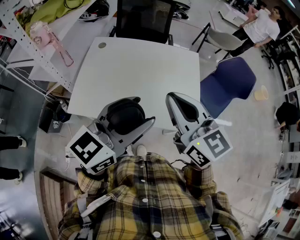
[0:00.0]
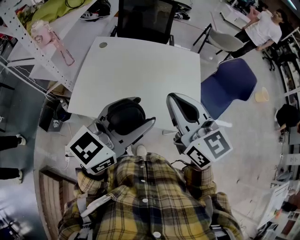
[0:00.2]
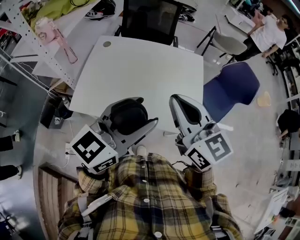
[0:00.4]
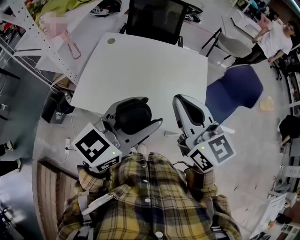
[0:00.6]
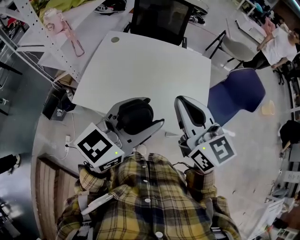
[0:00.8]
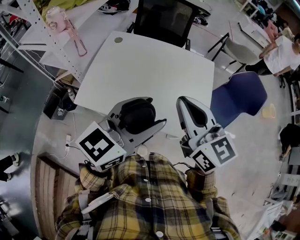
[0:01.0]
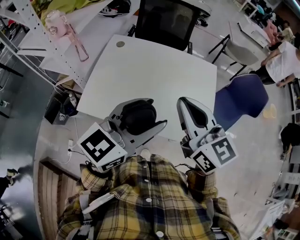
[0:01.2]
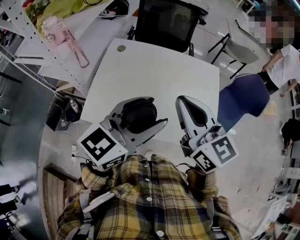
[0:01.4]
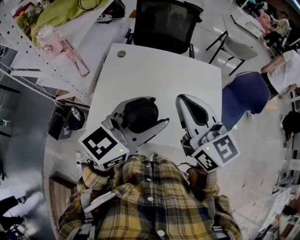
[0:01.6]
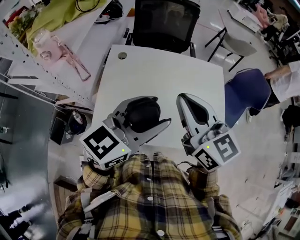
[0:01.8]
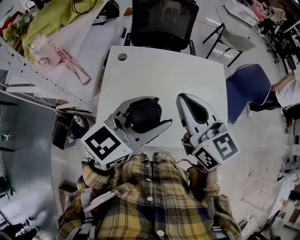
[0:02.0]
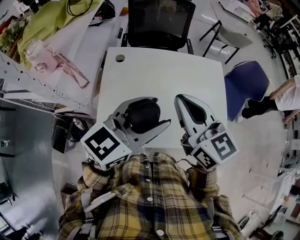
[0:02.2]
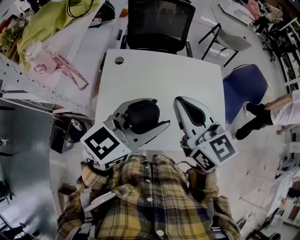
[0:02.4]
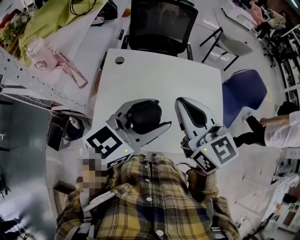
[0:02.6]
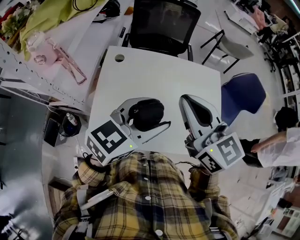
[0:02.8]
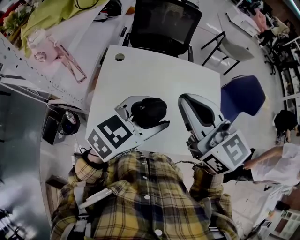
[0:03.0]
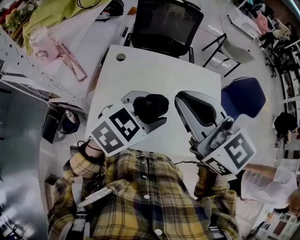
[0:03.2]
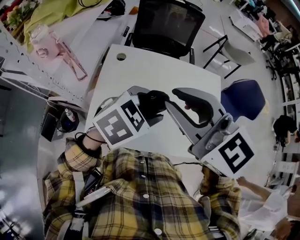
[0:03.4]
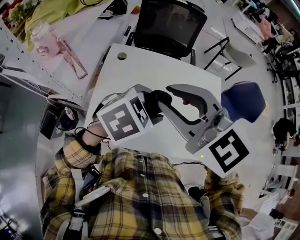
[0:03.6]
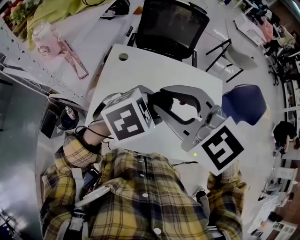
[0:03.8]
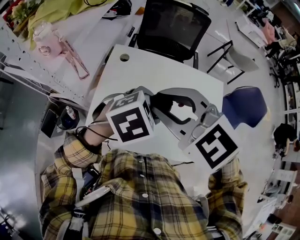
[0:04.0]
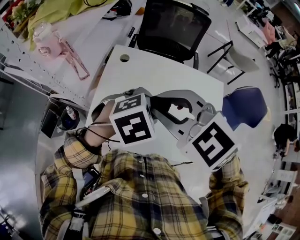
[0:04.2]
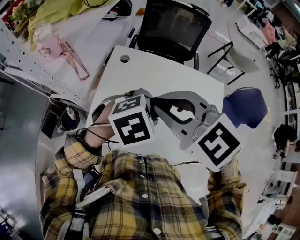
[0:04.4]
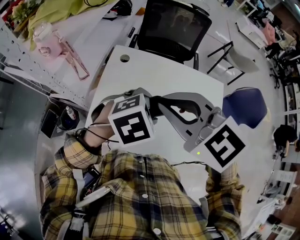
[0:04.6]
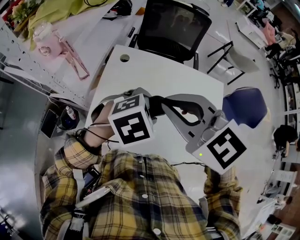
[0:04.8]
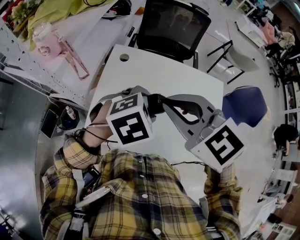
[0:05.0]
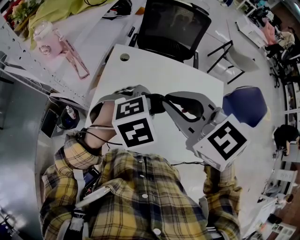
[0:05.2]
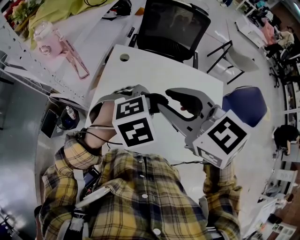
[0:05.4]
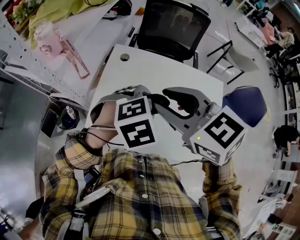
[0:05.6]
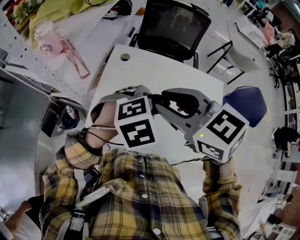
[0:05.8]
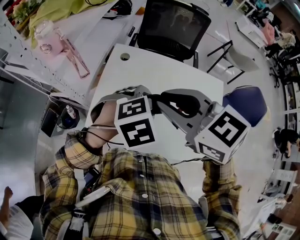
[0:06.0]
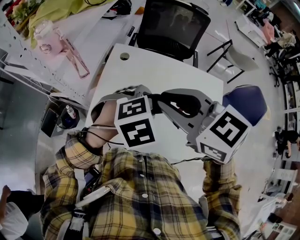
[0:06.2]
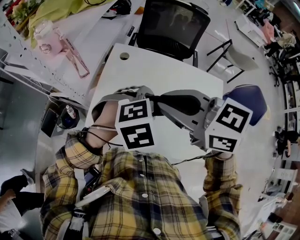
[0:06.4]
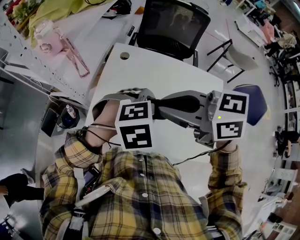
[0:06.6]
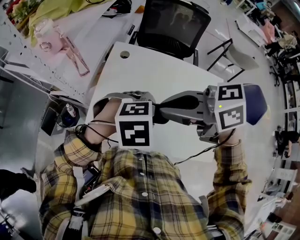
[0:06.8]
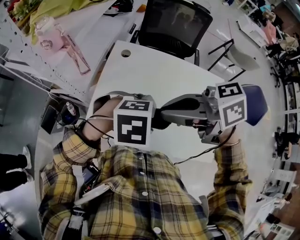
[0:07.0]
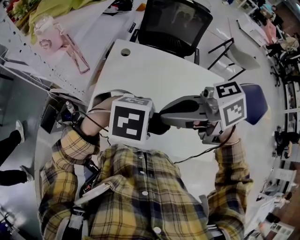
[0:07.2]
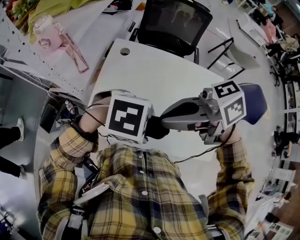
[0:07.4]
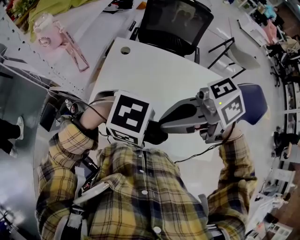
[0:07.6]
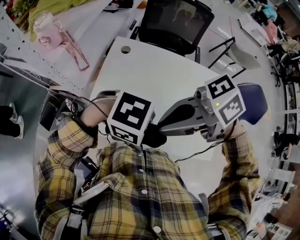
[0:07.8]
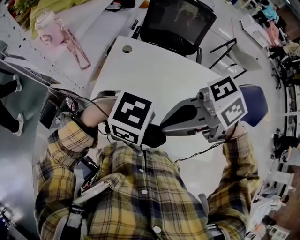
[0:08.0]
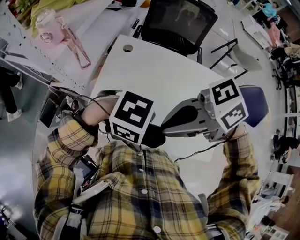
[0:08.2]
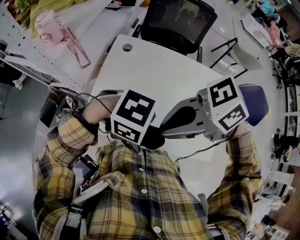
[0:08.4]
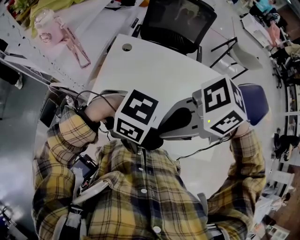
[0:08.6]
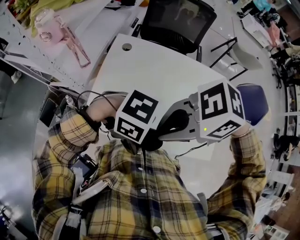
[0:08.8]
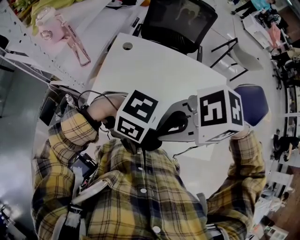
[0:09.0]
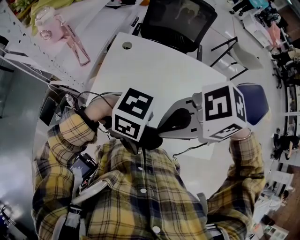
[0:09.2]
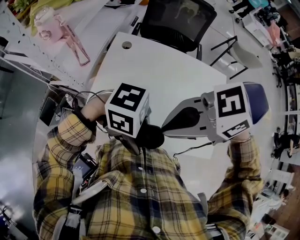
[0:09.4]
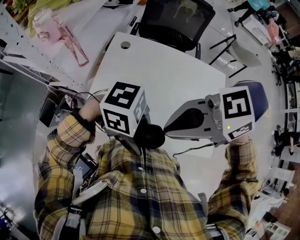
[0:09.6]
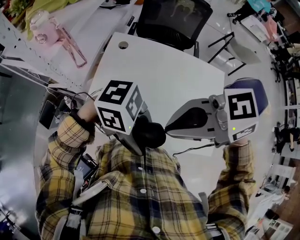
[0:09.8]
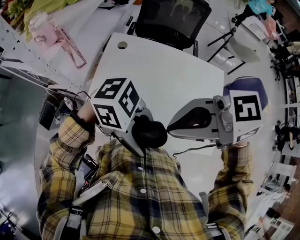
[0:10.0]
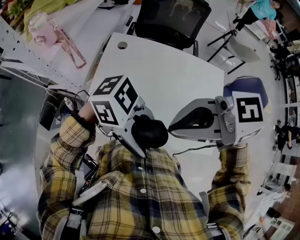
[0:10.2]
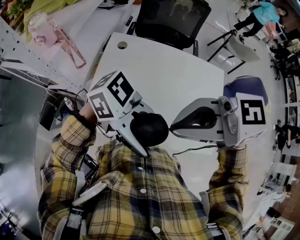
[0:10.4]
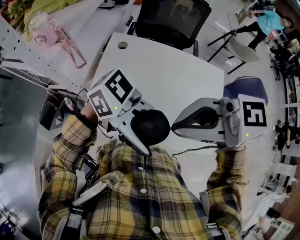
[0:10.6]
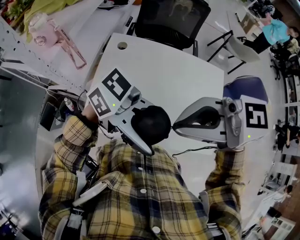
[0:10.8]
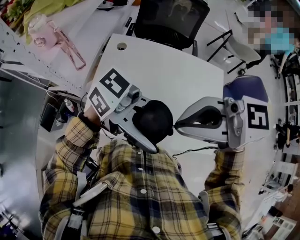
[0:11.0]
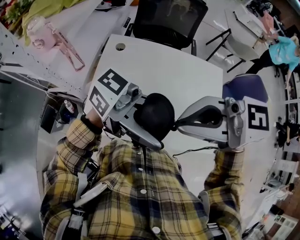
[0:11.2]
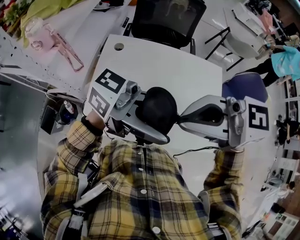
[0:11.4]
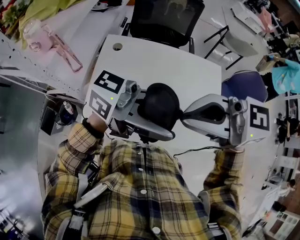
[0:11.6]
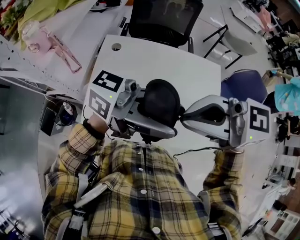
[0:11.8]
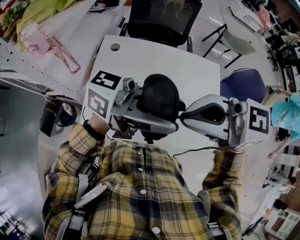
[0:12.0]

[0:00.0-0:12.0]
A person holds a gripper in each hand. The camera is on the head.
0:00.0 to 0:01.6: The grippers both shift to the left and forward by approximately 15 cm.
0:01.6 to 0:03.0: The left gripper travels forward by approximately 5 cm, and changes its angle by approximately 20 degrees, while the right gripper moves to the left, roughly 5 cm.
0:03.0 to 0:04.4: The left gripper goes roughly 5 cm downward, and tips its fingers downward by some 40 degrees; the right gripper heads to the left, covering approximately 5 cm, and changes its angle by some 40 degrees.
0:04.4 to 0:06.0: The grippers stay close to where they were, moving slightly.
0:06.0 to 0:07.6: The left gripper changes place by roughly 15 cm, and rotates about 50 degrees; the right gripper ends up about 10 cm from where it was, and swivels roughly 60 degrees.
0:07.6 to 0:09.0: The right gripper shifts by some 5 cm, and rotates about 40 degrees.
0:09.0 to 0:10.4: The two grippers go approximately 10 cm upward. The right gripper rotates approximately 40 degrees, while the left gripper points its fingers roughly 40 degrees further upward.
0:10.4 to 0:12.0: The left gripper shifts by approximately 10 cm, and rotates some 40 degrees.

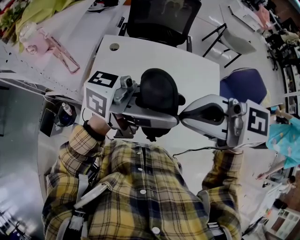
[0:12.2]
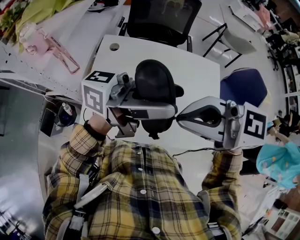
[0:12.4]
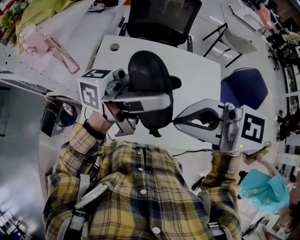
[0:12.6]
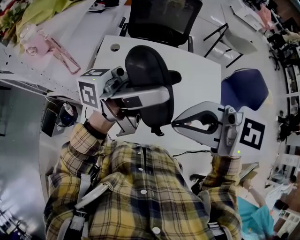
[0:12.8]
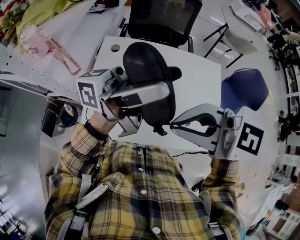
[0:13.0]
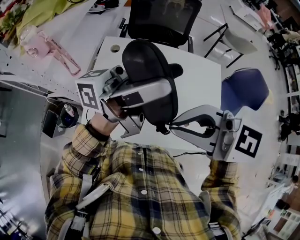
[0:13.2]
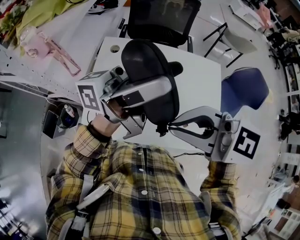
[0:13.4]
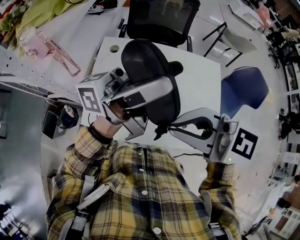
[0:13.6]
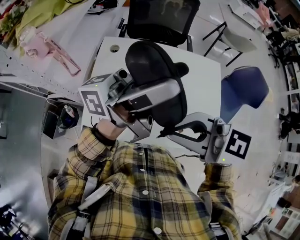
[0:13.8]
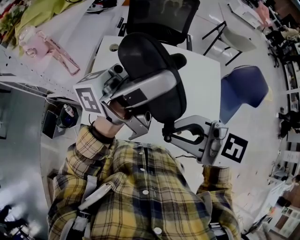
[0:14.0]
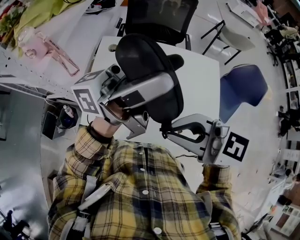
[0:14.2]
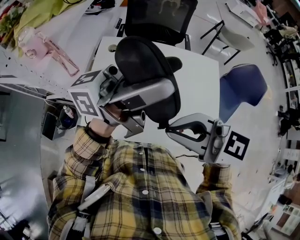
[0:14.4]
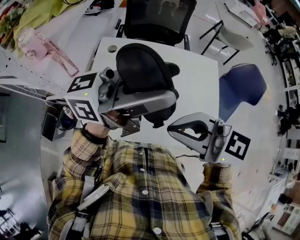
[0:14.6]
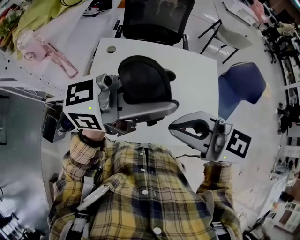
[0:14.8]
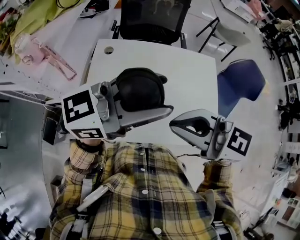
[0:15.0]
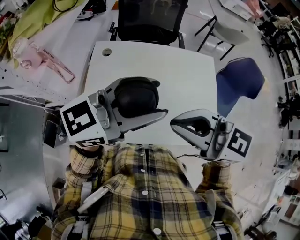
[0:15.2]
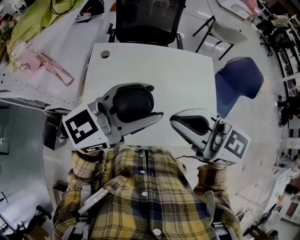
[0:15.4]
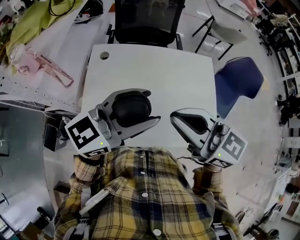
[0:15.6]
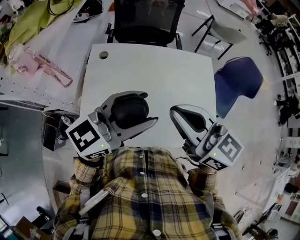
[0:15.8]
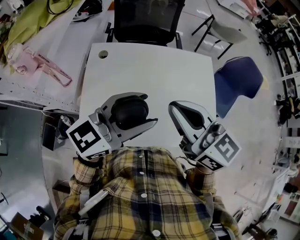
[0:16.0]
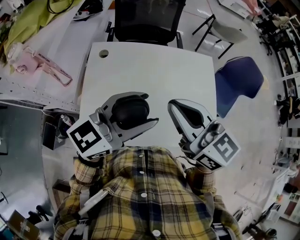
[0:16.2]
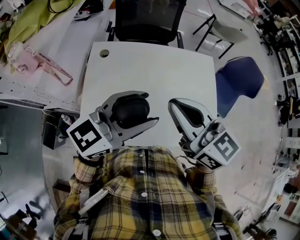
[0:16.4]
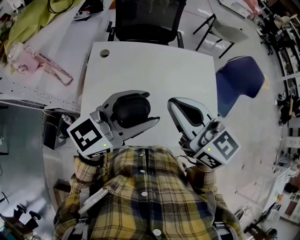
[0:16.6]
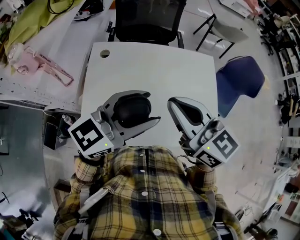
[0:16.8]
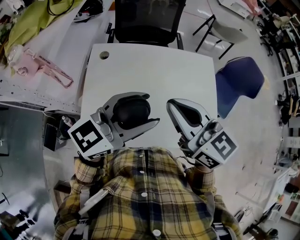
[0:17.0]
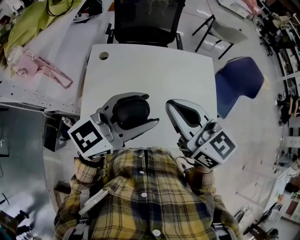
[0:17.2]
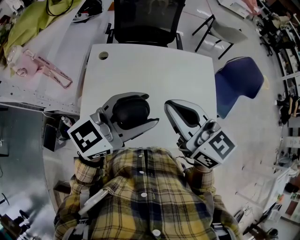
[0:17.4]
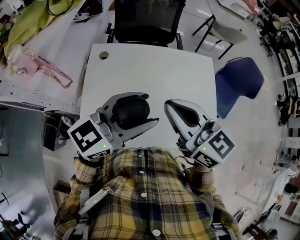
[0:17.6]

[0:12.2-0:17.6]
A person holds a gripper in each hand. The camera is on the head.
0:12.2 to 0:13.6: The left gripper changes place by about 10 cm, and changes its angle by about 30 degrees.
0:13.6 to 0:15.0: The left gripper ends up some 5 cm from where it was, and tilts its fingers roughly 30 degrees downward.
0:15.0 to 0:16.2: The left gripper moves downward, about 5 cm, while the right gripper changes place by about 10 cm, and turns by roughly 30 degrees.
0:16.2 to 0:17.6: There are only small adjustments of the grippers.

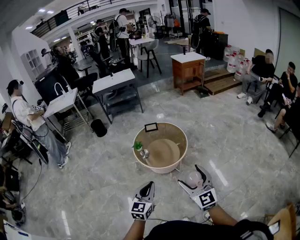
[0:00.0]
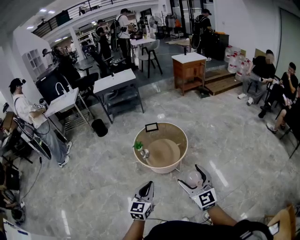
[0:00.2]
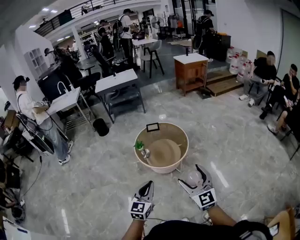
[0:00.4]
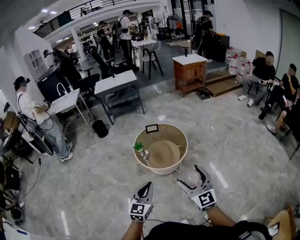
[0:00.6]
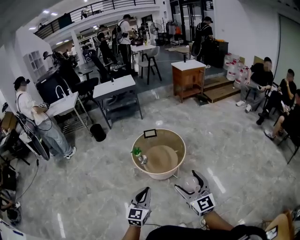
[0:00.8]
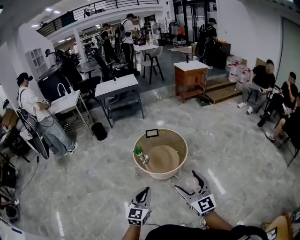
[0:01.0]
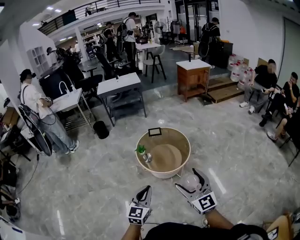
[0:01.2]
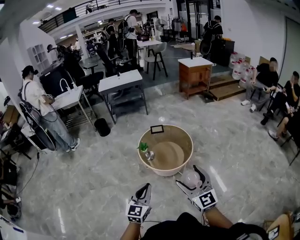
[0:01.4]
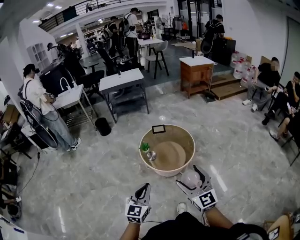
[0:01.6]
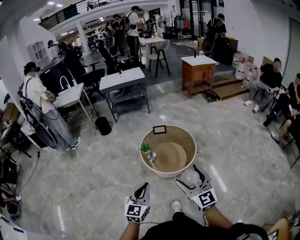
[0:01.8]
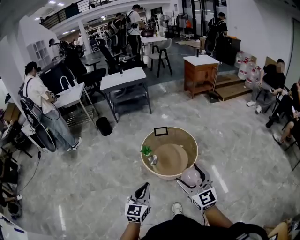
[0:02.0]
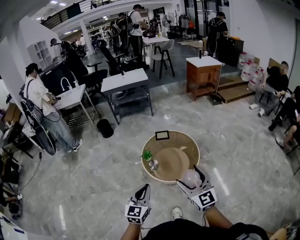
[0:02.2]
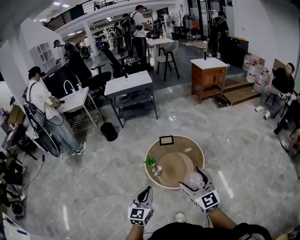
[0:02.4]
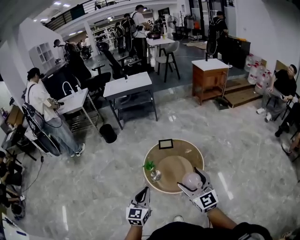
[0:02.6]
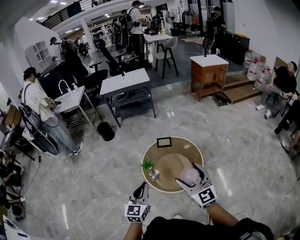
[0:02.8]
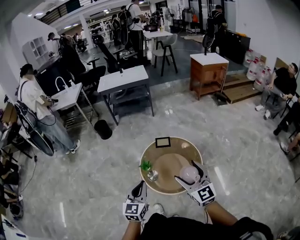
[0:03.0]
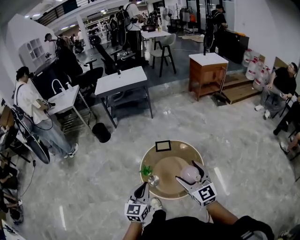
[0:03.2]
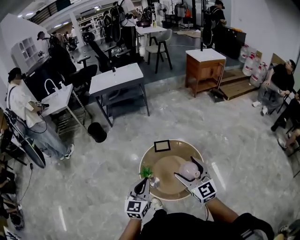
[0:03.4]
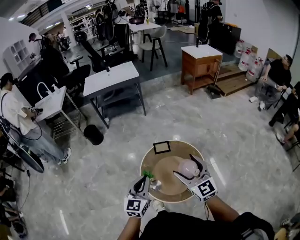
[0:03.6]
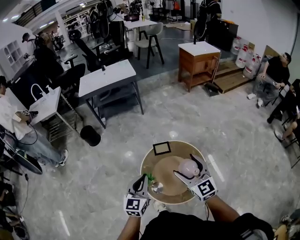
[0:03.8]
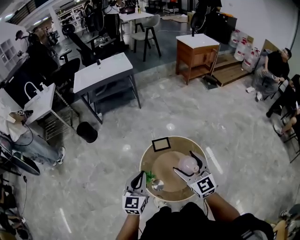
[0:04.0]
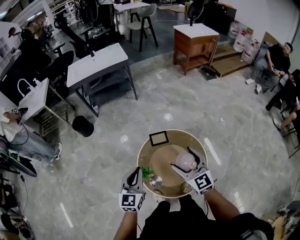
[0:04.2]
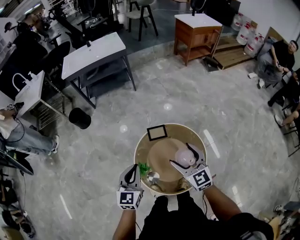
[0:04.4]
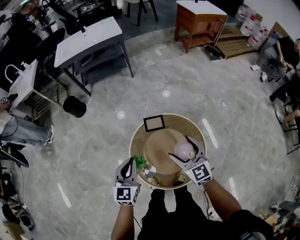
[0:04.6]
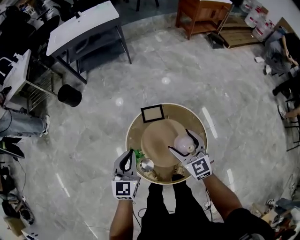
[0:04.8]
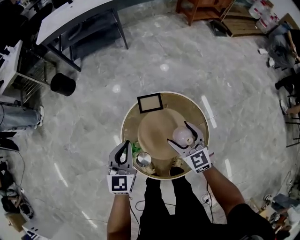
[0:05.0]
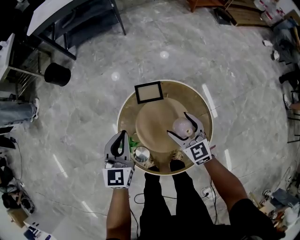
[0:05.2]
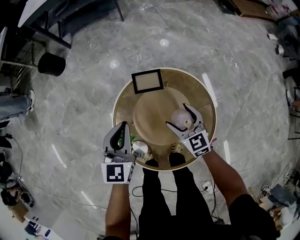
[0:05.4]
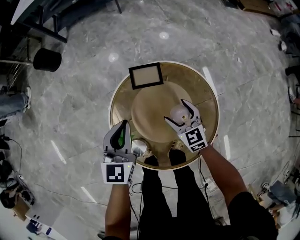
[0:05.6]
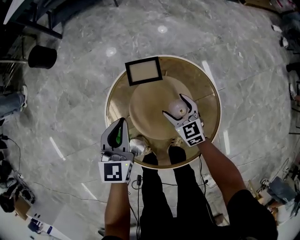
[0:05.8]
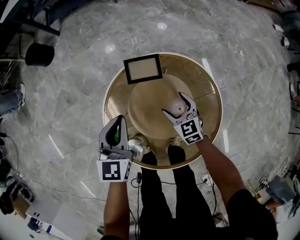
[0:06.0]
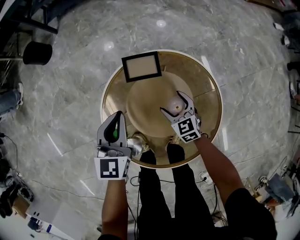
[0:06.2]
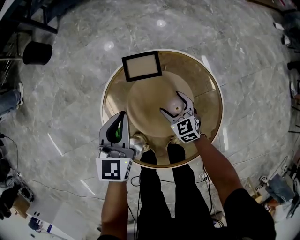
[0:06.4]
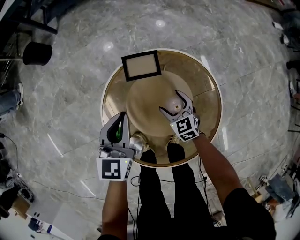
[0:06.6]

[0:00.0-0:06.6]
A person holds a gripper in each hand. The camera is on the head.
0:00.0 to 0:01.6: Both grippers move to the left, approximately 10 cm.
0:01.6 to 0:03.2: The grippers both shift forward by approximately 35 cm.
0:03.2 to 0:05.0: The left gripper is displaced forward and downward by approximately 35 cm. The right gripper travels downward and forward by about 40 cm, and swivels roughly 20 degrees.
0:05.0 to 0:06.6: The right gripper travels downward by roughly 30 cm. The left gripper goes about 15 cm downward.
